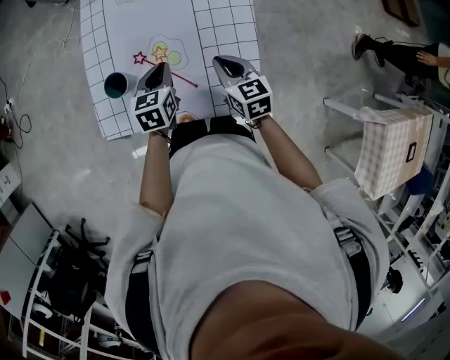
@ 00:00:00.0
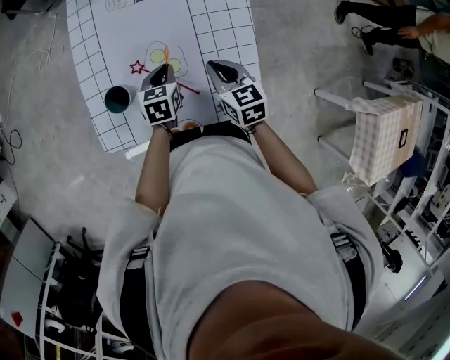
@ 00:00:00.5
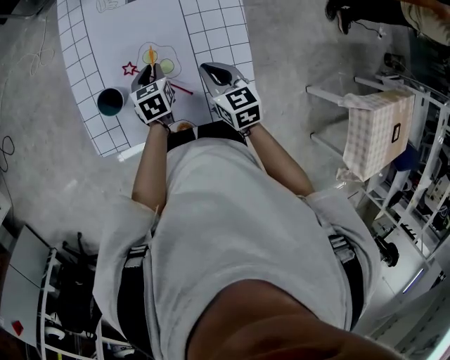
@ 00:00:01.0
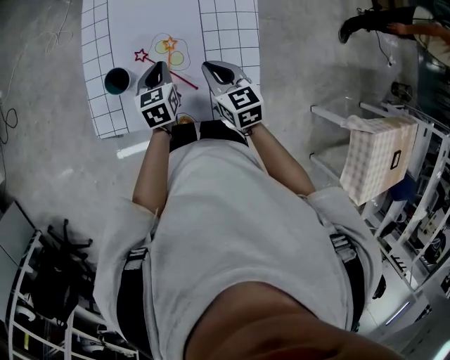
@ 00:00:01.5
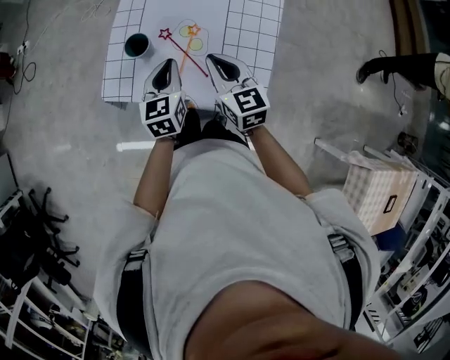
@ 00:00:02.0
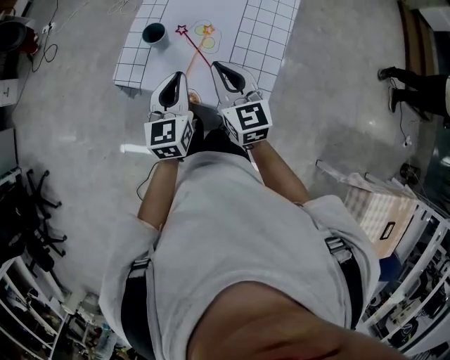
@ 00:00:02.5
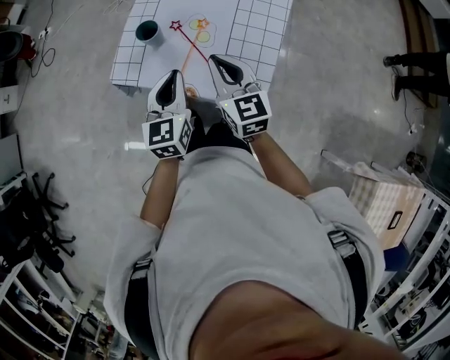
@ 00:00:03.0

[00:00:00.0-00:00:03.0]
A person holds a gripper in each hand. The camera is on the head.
00:00:00.0 to 00:00:01.5: The left gripper reaches about 10 cm downward, then returns.
00:00:01.5 to 00:00:03.0: The left gripper goes some 25 cm backward and upward, and swivels roughly 30 degrees. The right gripper is displaced upward and backward by roughly 15 cm, and swivels roughly 20 degrees.

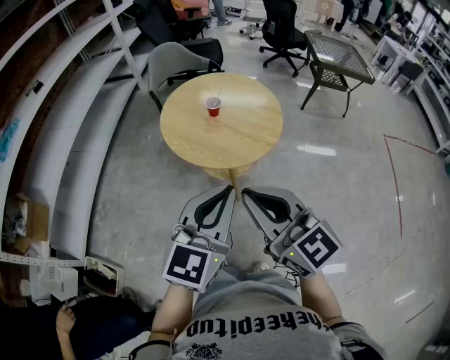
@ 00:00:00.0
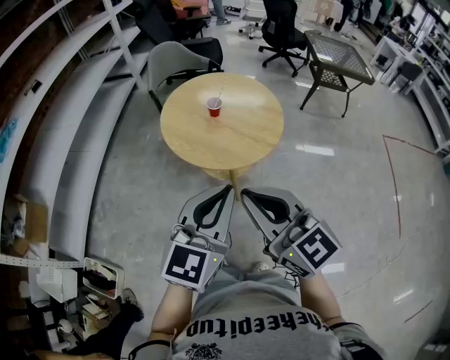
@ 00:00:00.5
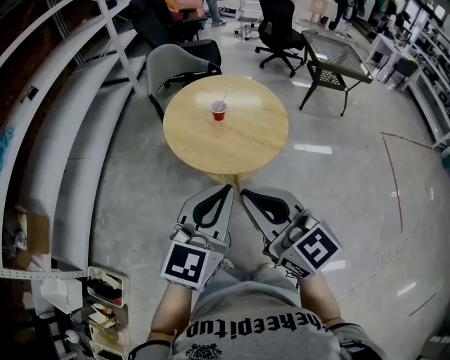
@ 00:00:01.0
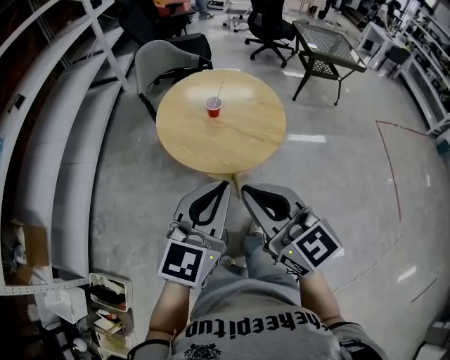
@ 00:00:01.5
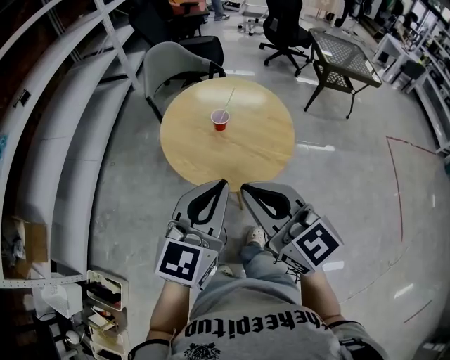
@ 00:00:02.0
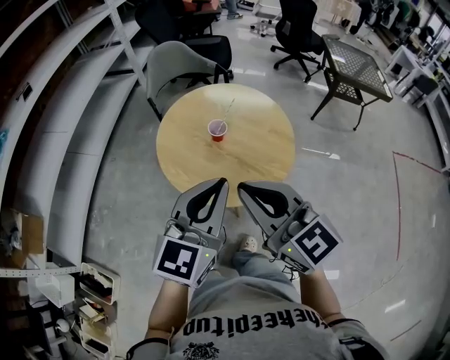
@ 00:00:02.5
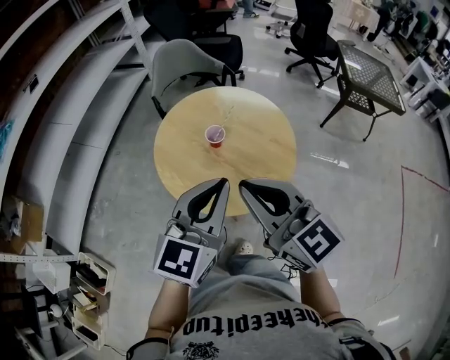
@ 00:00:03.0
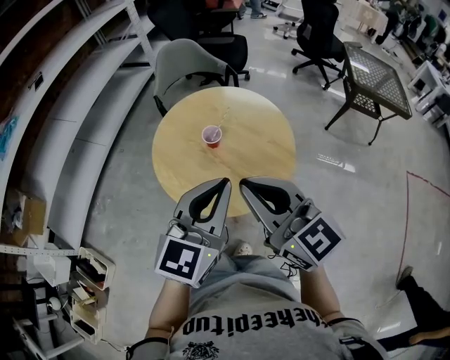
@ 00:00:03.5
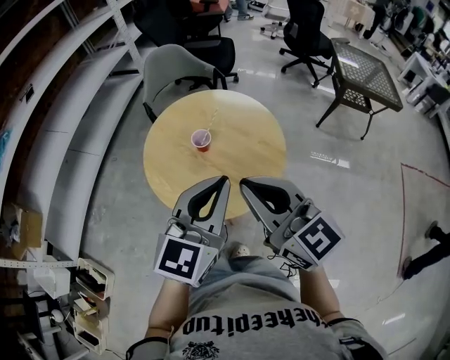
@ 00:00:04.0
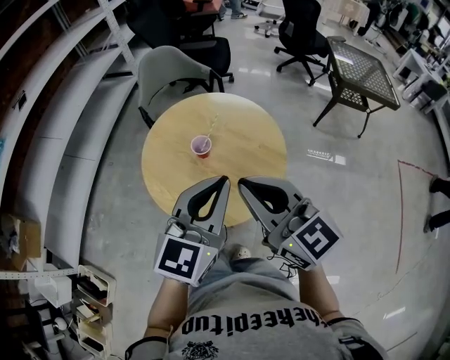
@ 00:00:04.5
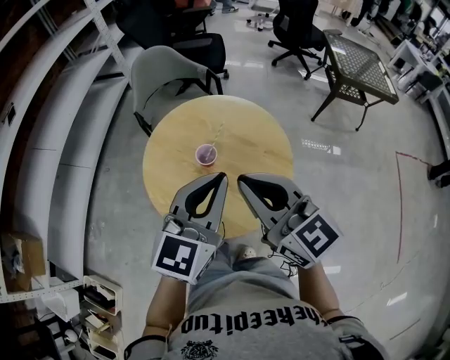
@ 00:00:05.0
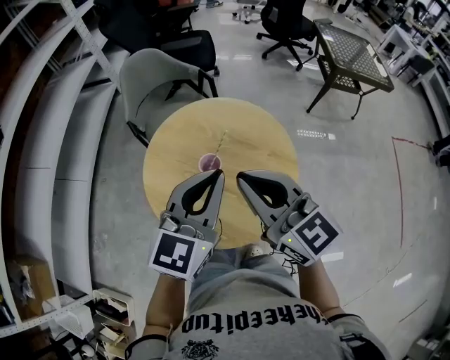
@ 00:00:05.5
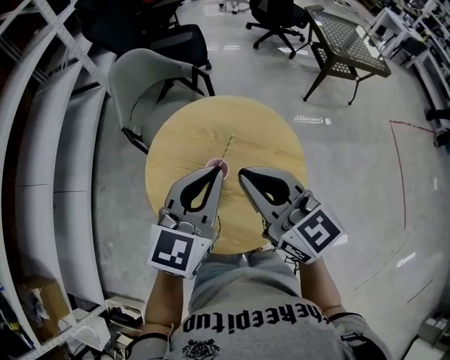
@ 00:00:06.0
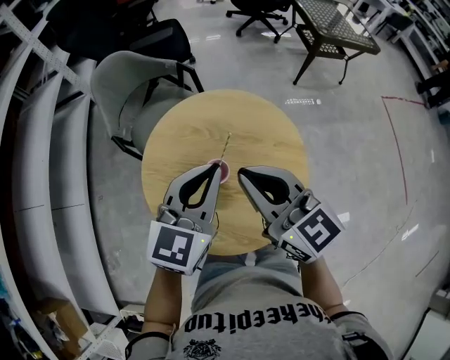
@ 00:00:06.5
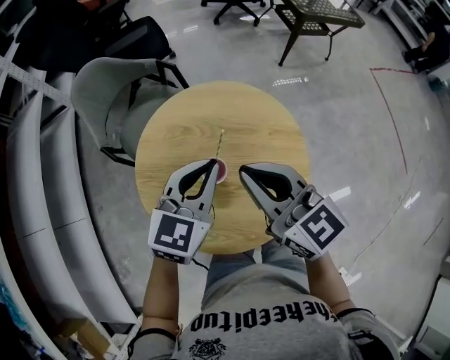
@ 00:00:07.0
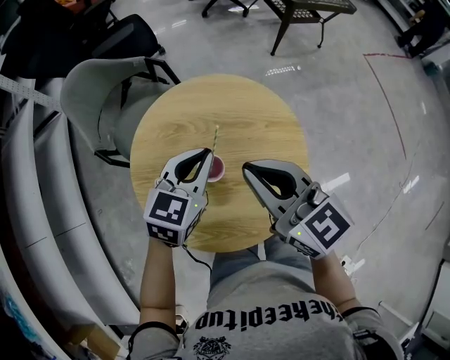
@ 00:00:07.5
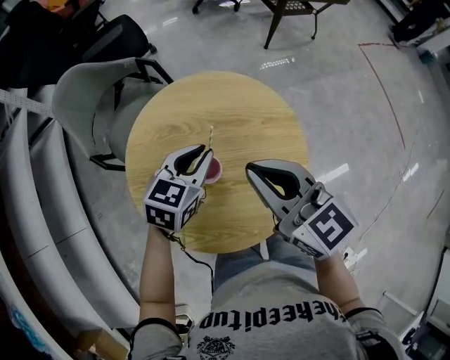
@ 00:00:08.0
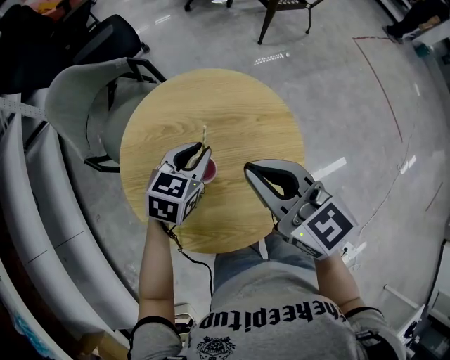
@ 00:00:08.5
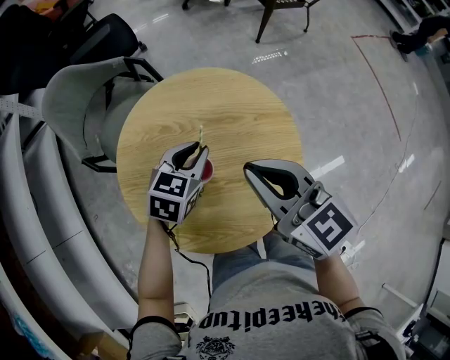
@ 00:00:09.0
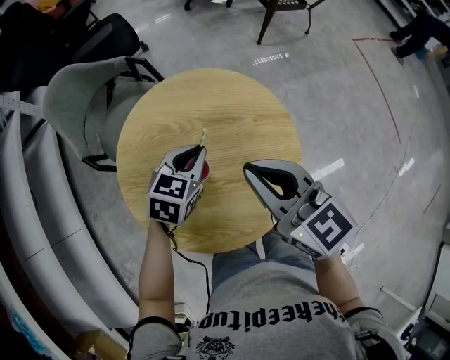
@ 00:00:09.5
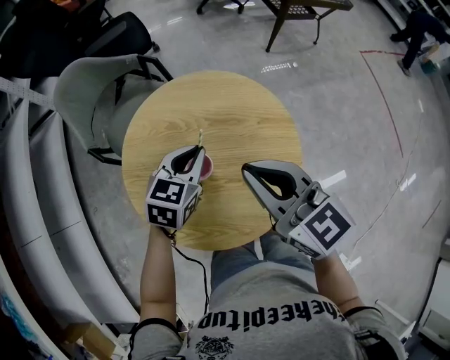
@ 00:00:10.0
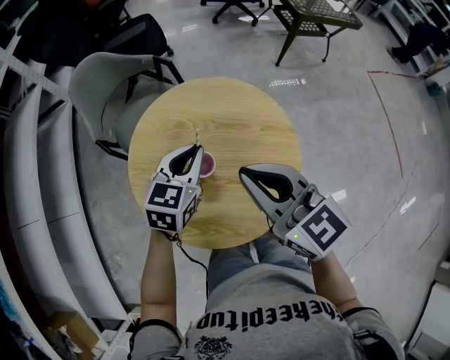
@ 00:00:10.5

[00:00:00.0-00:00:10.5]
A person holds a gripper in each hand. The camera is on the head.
00:00:00.0 to 00:00:02.0: The two grippers go roughly 15 cm forward.
00:00:02.0 to 00:00:04.0: The grippers both shift to the right and forward by approximately 15 cm.
00:00:04.0 to 00:00:06.5: The two grippers go about 25 cm forward and to the left. The left gripper rotates roughly 30 degrees. The right gripper rotates about 20 degrees.
00:00:06.5 to 00:00:08.5: The right gripper is displaced downward by roughly 5 cm; the left gripper heads downward and forward, covering about 20 cm, changes its angle by about 30 degrees, and opens up.
00:00:08.5 to 00:00:10.5: The left gripper moves upward, roughly 5 cm.

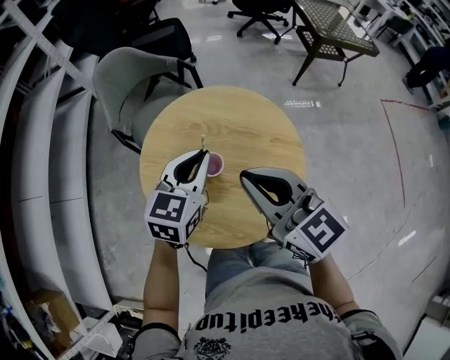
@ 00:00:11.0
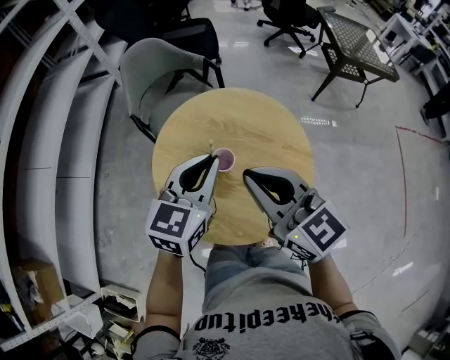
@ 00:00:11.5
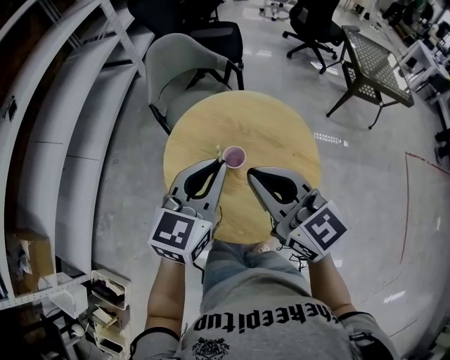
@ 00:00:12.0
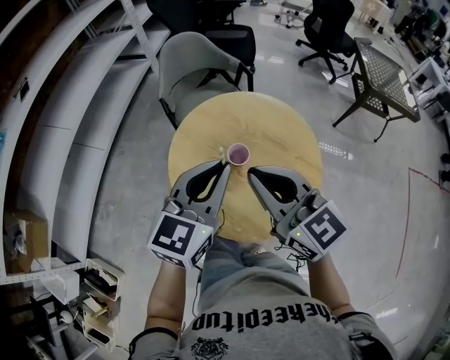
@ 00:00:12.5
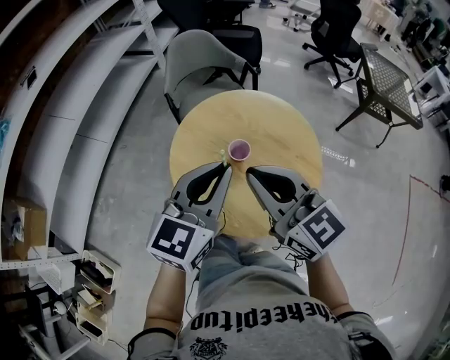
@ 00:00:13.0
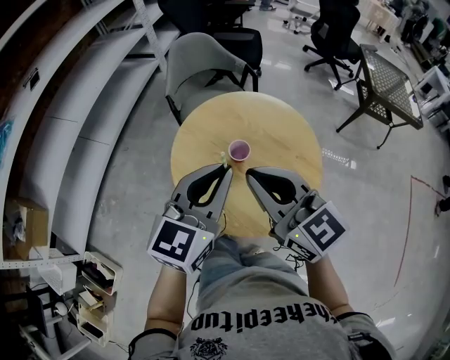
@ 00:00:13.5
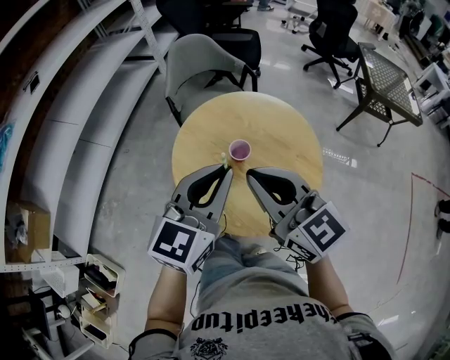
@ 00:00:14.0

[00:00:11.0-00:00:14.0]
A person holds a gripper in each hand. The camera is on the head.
00:00:11.0 to 00:00:12.5: The right gripper shifts by about 5 cm, while the left gripper shifts roughly 15 cm backward and upward, and swivels approximately 20 degrees.
00:00:12.5 to 00:00:14.0: The grippers move only a little.

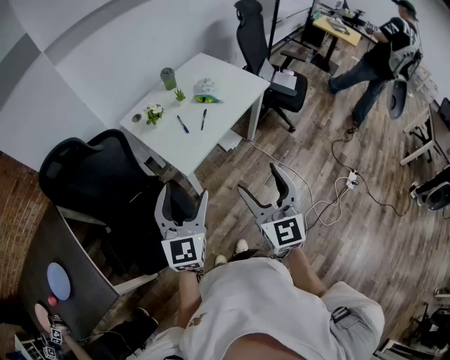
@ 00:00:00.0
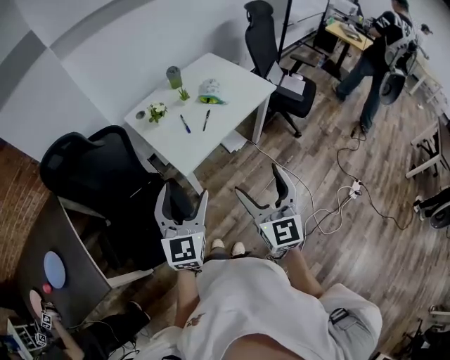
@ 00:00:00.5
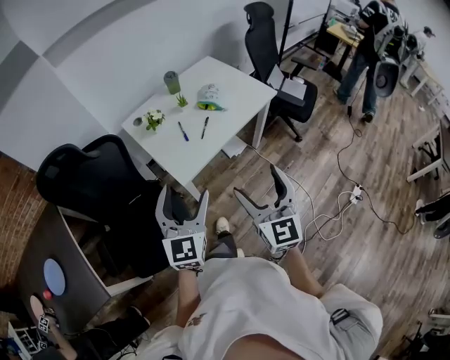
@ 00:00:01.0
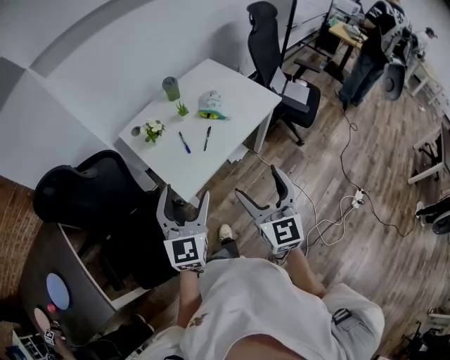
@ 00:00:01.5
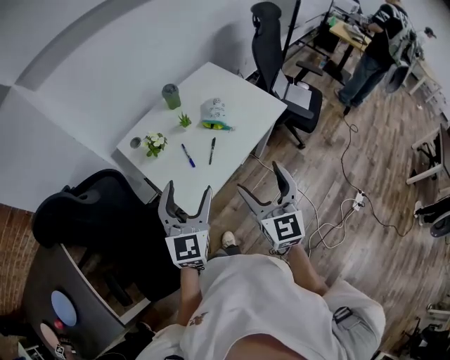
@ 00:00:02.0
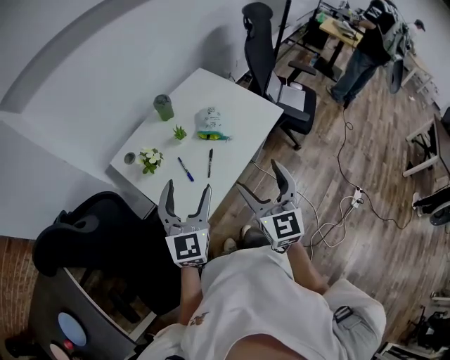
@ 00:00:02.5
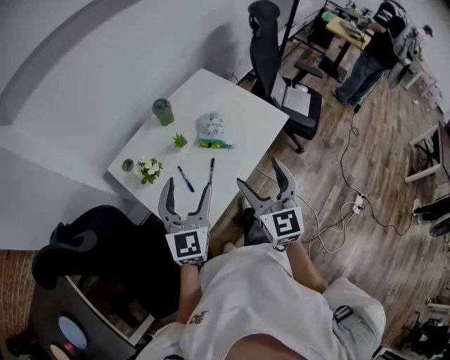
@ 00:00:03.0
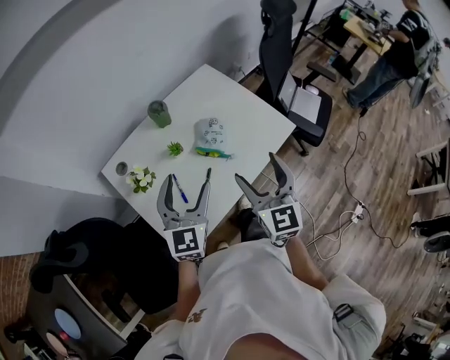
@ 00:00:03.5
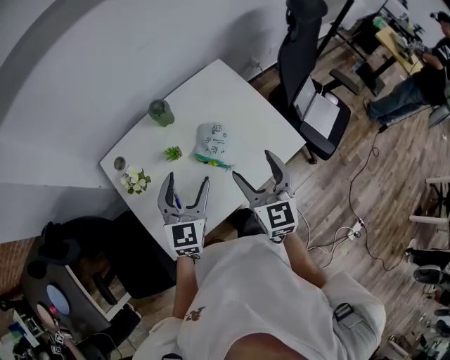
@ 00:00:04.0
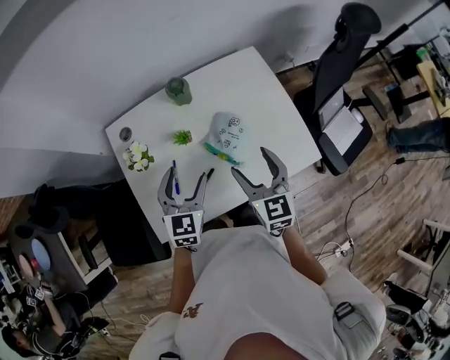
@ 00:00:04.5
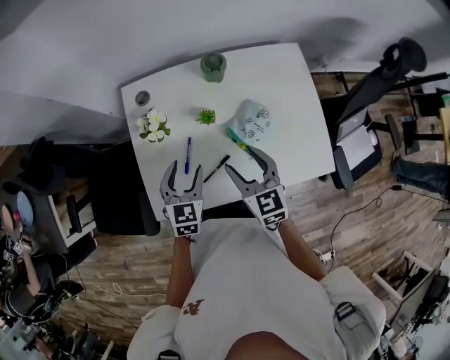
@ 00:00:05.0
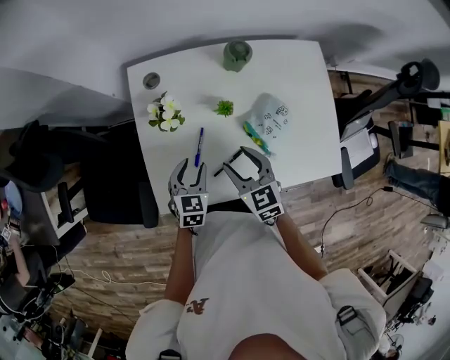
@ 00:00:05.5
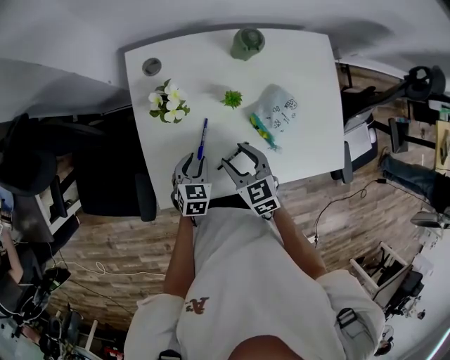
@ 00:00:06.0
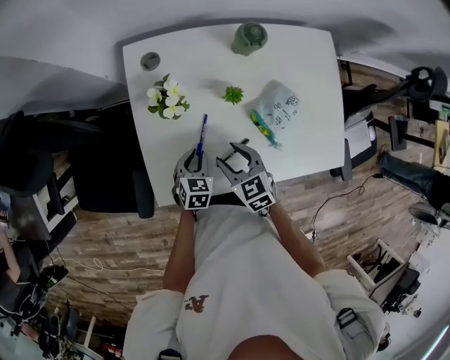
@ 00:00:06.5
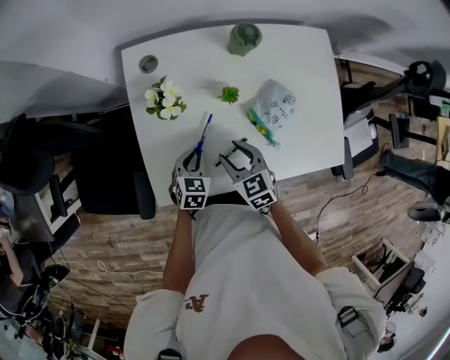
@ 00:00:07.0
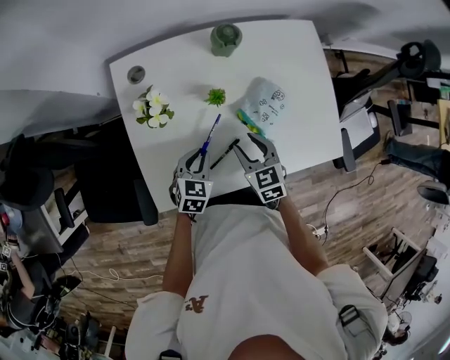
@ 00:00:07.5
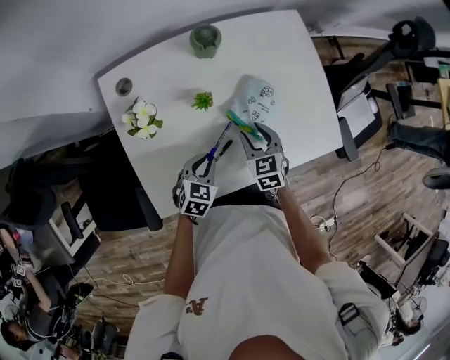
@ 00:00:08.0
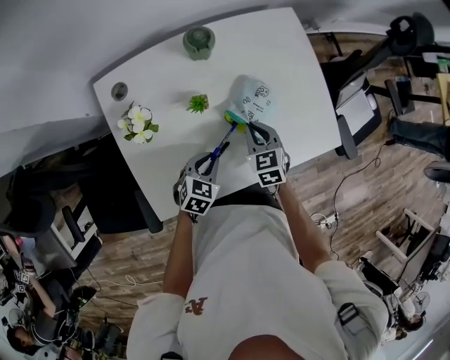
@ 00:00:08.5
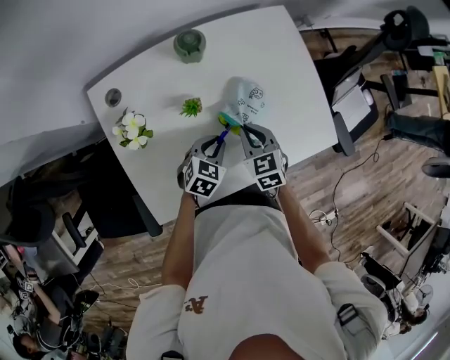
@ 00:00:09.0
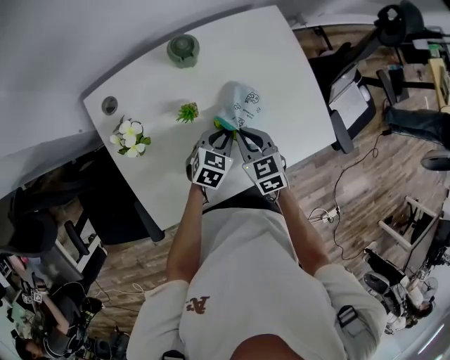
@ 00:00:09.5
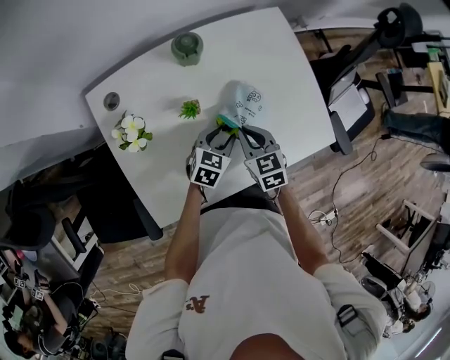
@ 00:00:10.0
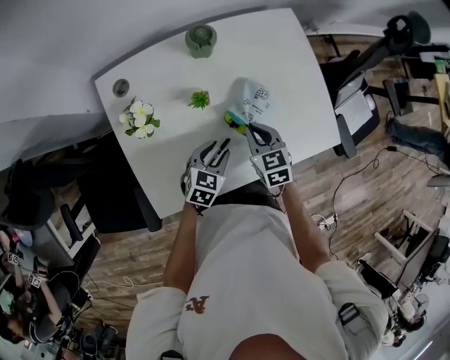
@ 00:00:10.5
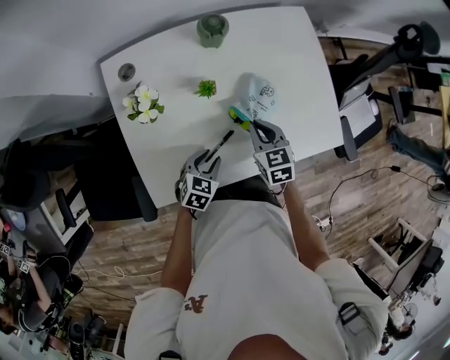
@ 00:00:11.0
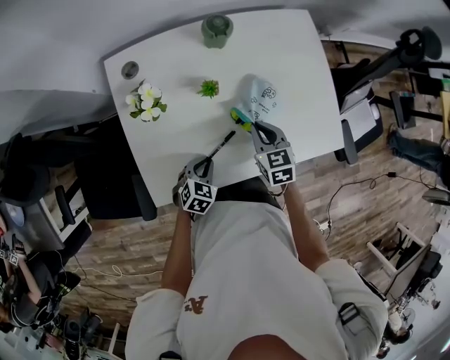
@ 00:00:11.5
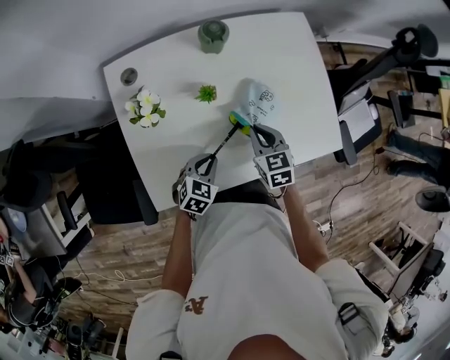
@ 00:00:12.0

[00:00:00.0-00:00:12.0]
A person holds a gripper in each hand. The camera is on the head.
00:00:00.0 to 00:00:02.0: Both grippers move forward, approximately 25 cm.
00:00:02.0 to 00:00:04.0: The grippers both shift forward by roughly 30 cm.
00:00:04.0 to 00:00:06.0: Both grippers travel together downward, about 25 cm. The right gripper changes its angle by approximately 50 degrees; the left gripper angles its fingers downward, by roughly 30 degrees, and closes.
00:00:06.0 to 00:00:08.0: The left gripper moves roughly 10 cm, and rotates about 20 degrees. The right gripper ends up about 15 cm from where it was, and swivels roughly 20 degrees.
00:00:08.0 to 00:00:10.0: The right gripper closes. The left gripper travels forward and to the right by some 15 cm.
00:00:10.0 to 00:00:12.0: The left gripper goes about 15 cm backward and to the left, and closes up.
